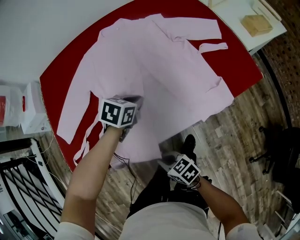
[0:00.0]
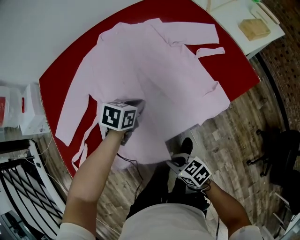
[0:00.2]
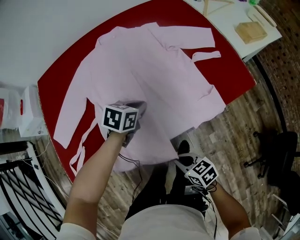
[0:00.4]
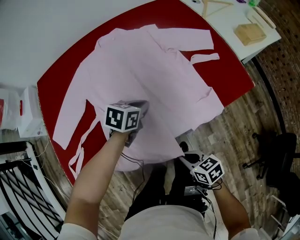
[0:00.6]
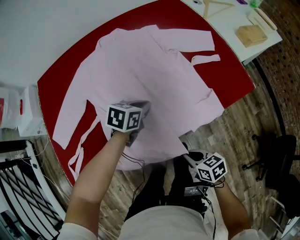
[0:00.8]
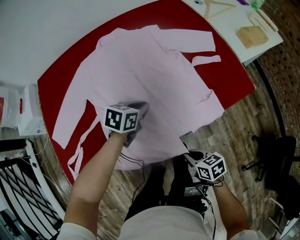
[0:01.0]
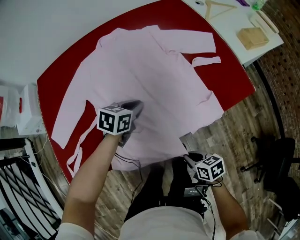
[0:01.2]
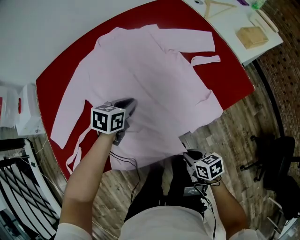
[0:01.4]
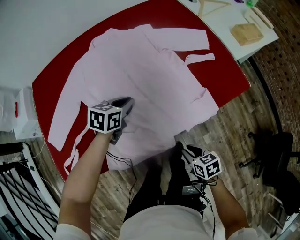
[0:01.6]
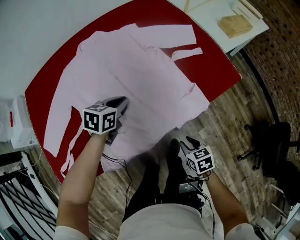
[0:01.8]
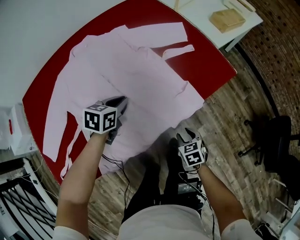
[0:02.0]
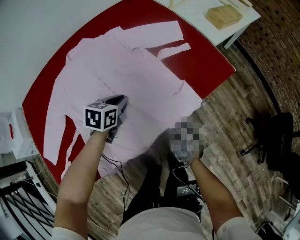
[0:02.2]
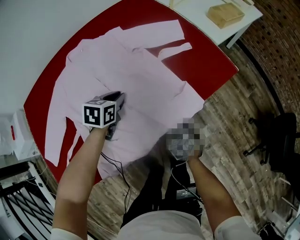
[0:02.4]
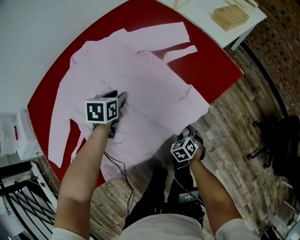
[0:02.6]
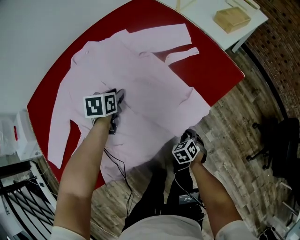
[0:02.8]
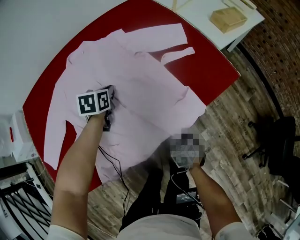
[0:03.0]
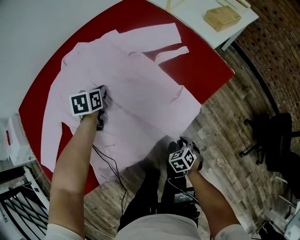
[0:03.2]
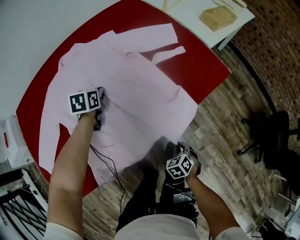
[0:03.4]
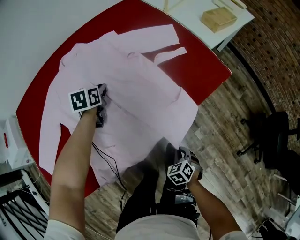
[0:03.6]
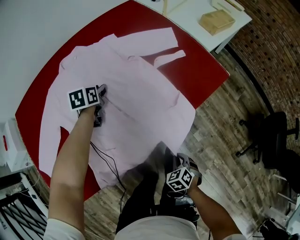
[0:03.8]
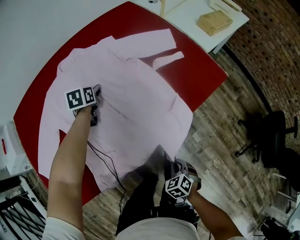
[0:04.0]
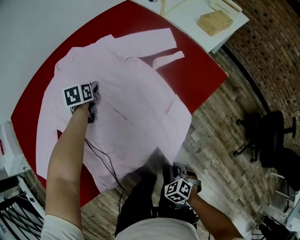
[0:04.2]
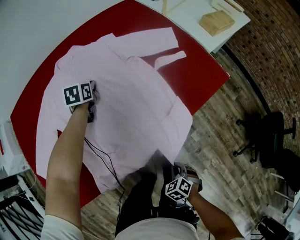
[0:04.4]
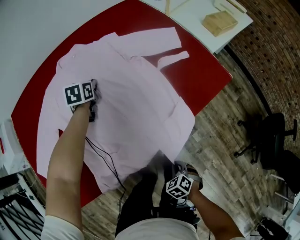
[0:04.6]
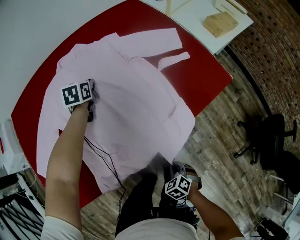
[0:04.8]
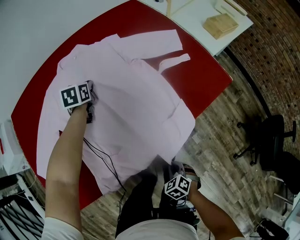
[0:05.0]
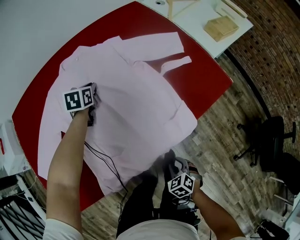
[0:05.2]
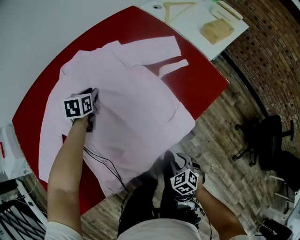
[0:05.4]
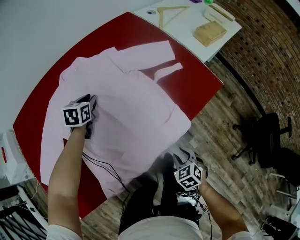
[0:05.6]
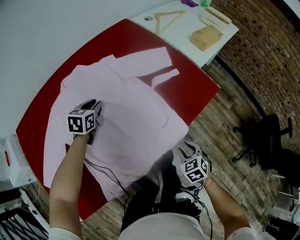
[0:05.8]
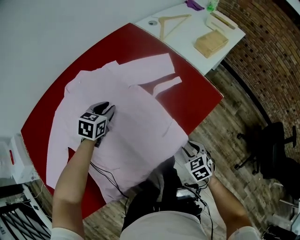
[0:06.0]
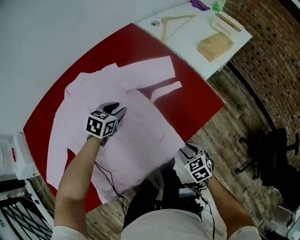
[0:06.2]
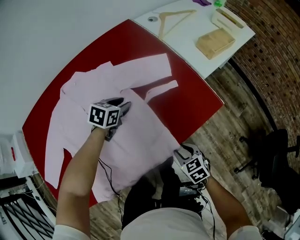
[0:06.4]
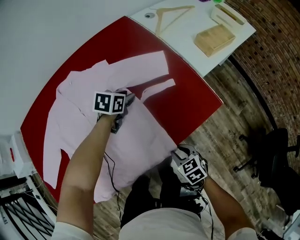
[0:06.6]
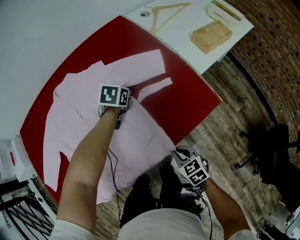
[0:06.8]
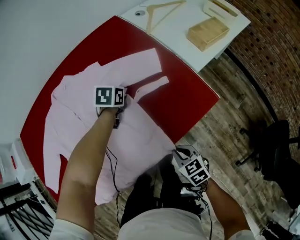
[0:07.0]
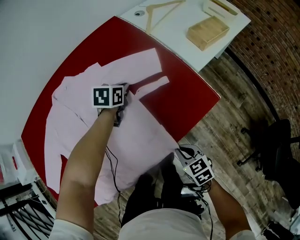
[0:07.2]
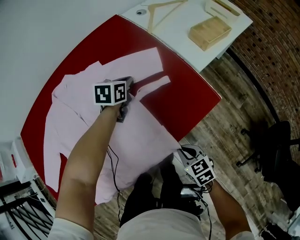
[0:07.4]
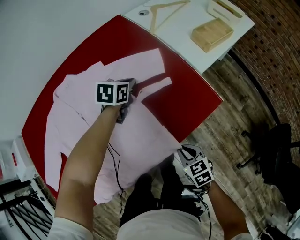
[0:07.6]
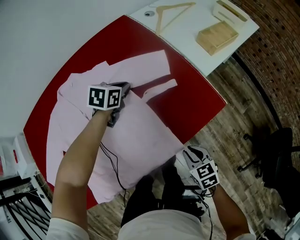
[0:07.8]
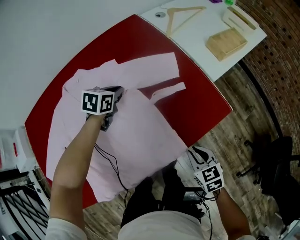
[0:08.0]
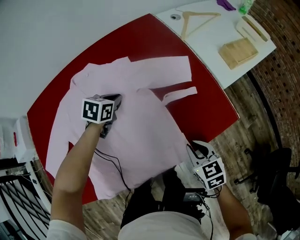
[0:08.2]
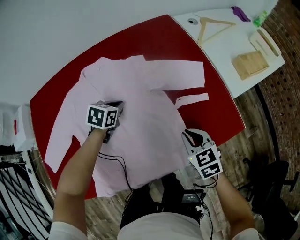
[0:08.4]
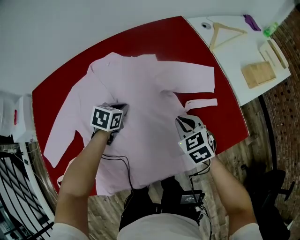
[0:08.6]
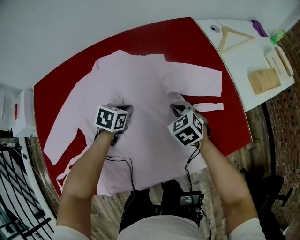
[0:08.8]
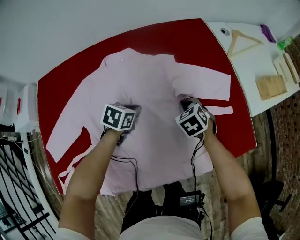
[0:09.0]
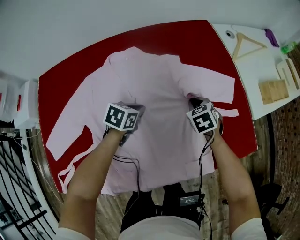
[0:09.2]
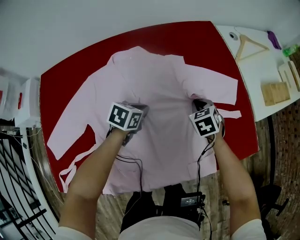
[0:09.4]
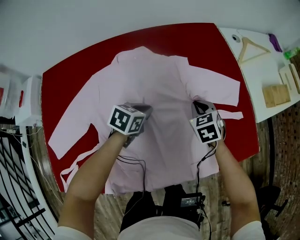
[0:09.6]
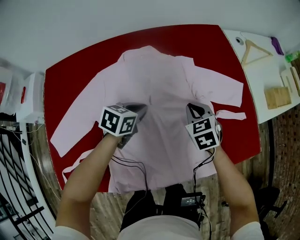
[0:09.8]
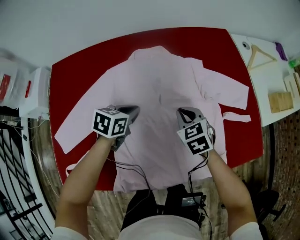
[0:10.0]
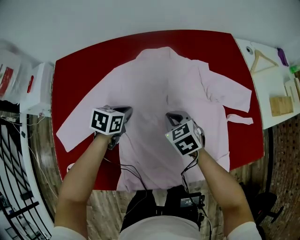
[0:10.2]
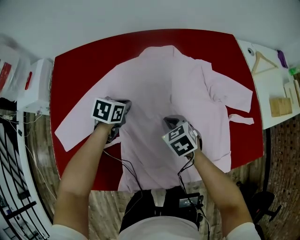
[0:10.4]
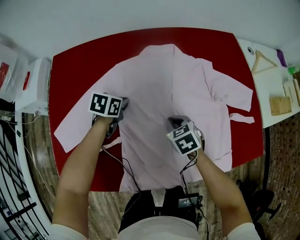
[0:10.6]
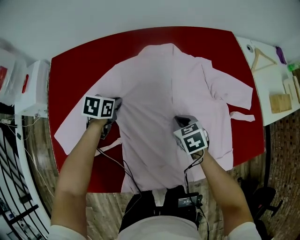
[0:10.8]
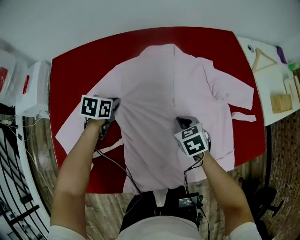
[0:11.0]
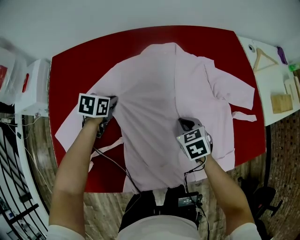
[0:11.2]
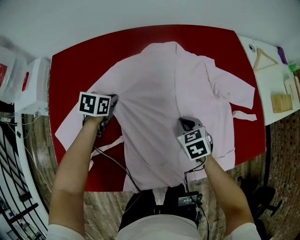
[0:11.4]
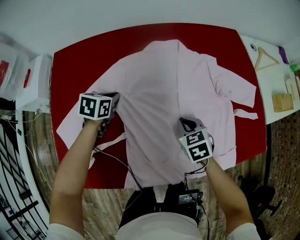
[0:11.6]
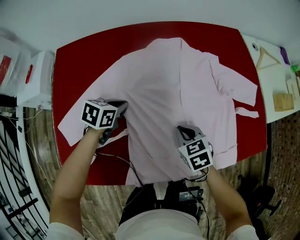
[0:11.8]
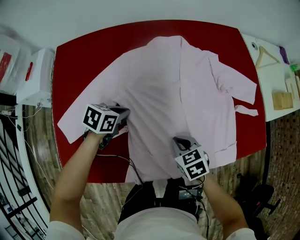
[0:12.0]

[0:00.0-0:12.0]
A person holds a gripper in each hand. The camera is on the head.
0:00.0 to 0:01.6: The right gripper moves to the right, some 20 cm, and swivels roughly 30 degrees.
0:01.6 to 0:03.0: The left gripper travels forward by approximately 10 cm, and opens, then closes once more. Meanwhile the right gripper is displaced downward and forward by about 15 cm, turns by about 40 degrees, and opens, then closes again.
0:03.0 to 0:04.4: The left gripper heads to the left and forward, covering about 10 cm, and opens and closes again. The right gripper shifts roughly 15 cm backward.
0:04.4 to 0:06.0: The right gripper moves forward and upward, roughly 20 cm, rotates roughly 20 degrees, and opens. Meanwhile the left gripper heads to the right and upward, covering some 10 cm, and swivels roughly 30 degrees.
0:06.0 to 0:07.6: The left gripper is displaced to the right and forward by about 20 cm, and closes up; the right gripper closes up.
0:07.6 to 0:09.0: The left gripper is displaced to the left and backward by approximately 25 cm, while the right gripper shifts roughly 35 cm forward and to the left, and changes its angle by roughly 40 degrees.
0:09.0 to 0:10.4: The left gripper moves to the left, about 20 cm; the right gripper heads to the left and backward, covering roughly 25 cm.
0:10.4 to 0:12.0: Both grippers travel together backward, approximately 10 cm.

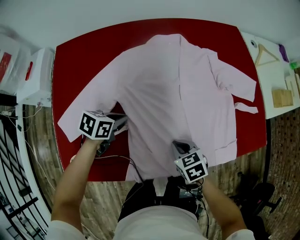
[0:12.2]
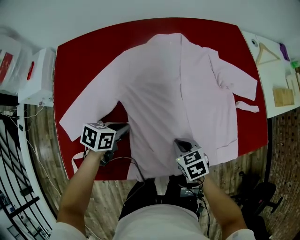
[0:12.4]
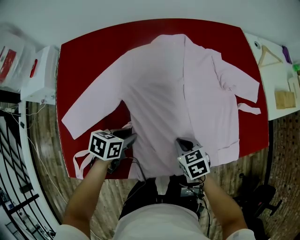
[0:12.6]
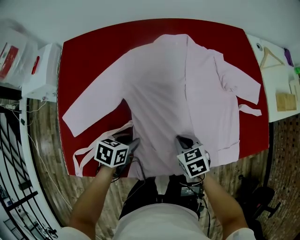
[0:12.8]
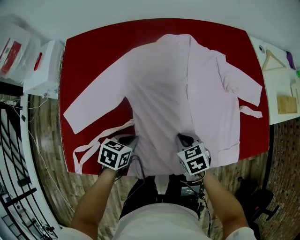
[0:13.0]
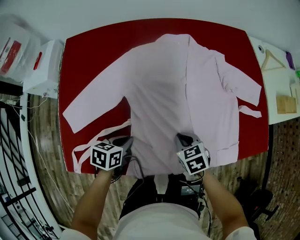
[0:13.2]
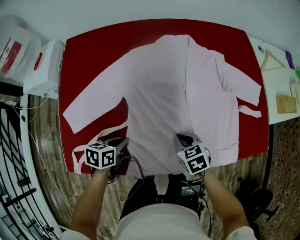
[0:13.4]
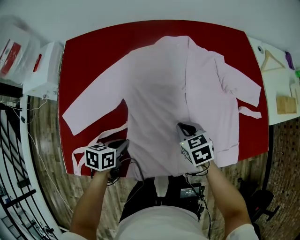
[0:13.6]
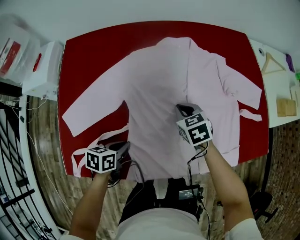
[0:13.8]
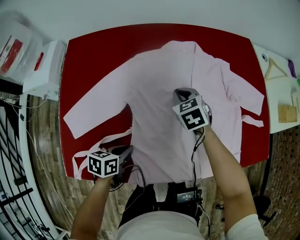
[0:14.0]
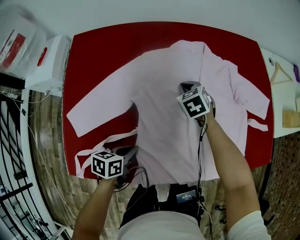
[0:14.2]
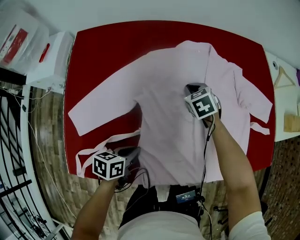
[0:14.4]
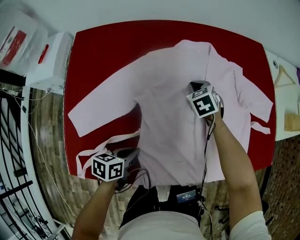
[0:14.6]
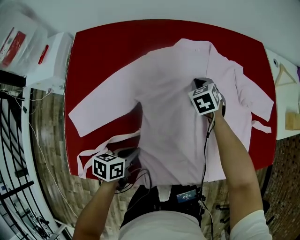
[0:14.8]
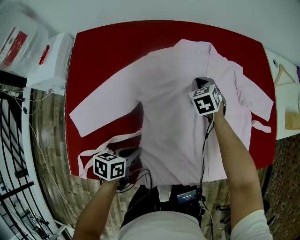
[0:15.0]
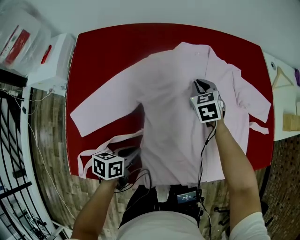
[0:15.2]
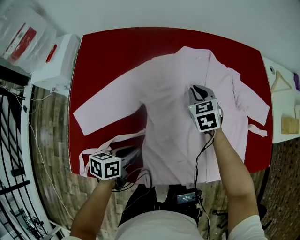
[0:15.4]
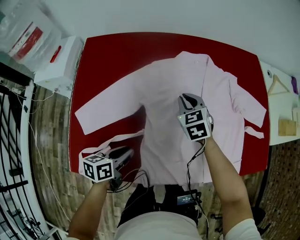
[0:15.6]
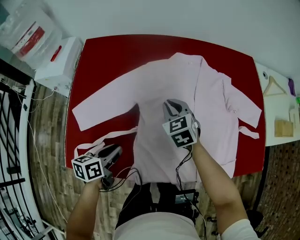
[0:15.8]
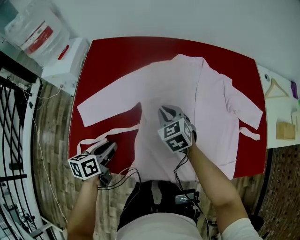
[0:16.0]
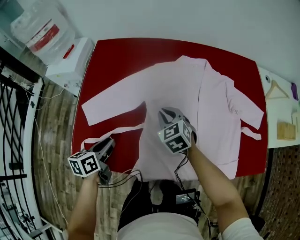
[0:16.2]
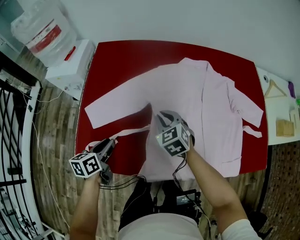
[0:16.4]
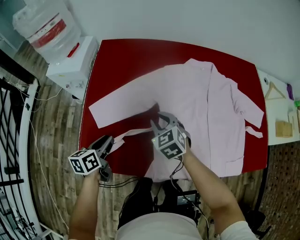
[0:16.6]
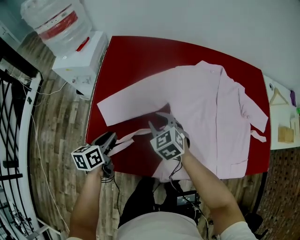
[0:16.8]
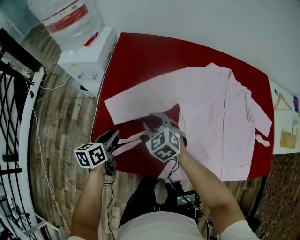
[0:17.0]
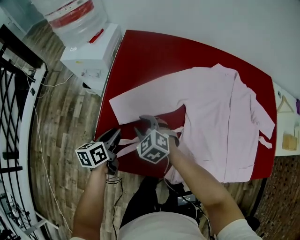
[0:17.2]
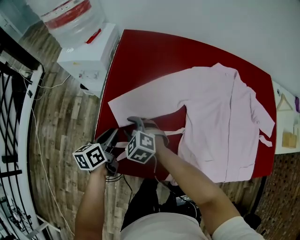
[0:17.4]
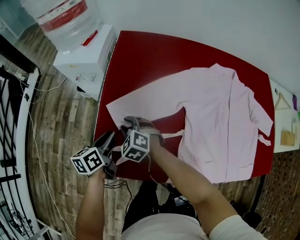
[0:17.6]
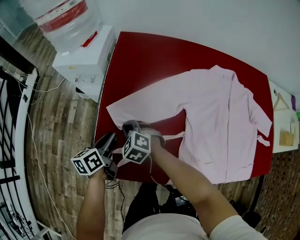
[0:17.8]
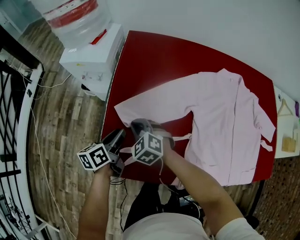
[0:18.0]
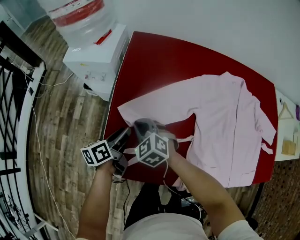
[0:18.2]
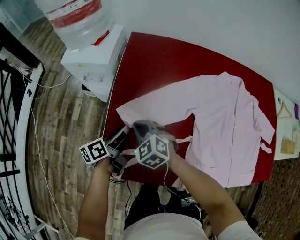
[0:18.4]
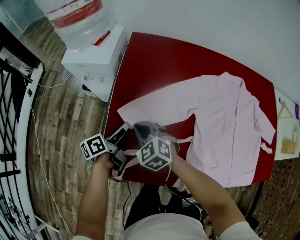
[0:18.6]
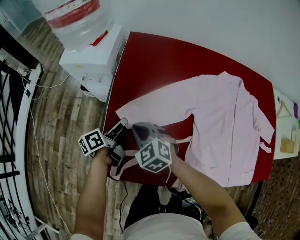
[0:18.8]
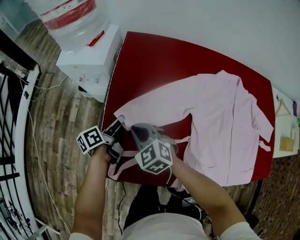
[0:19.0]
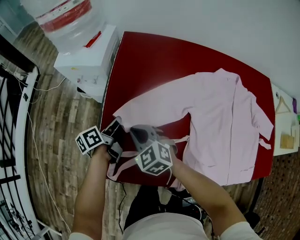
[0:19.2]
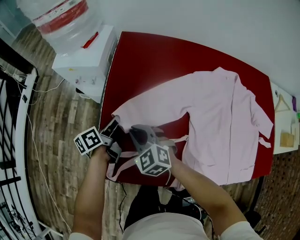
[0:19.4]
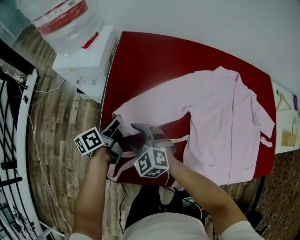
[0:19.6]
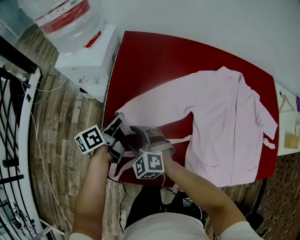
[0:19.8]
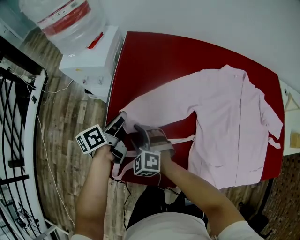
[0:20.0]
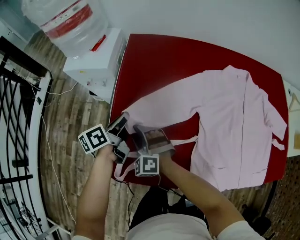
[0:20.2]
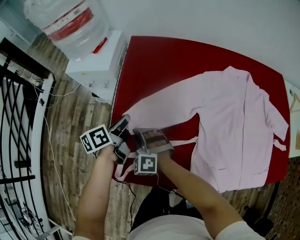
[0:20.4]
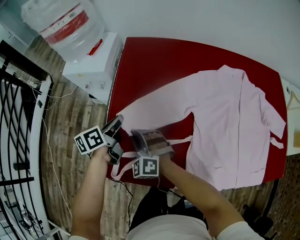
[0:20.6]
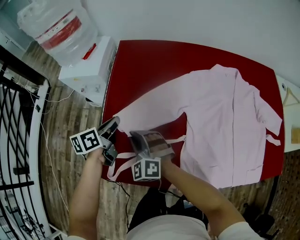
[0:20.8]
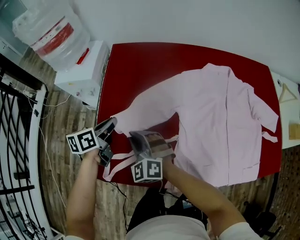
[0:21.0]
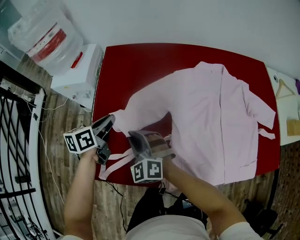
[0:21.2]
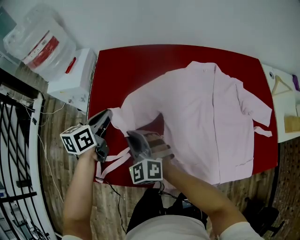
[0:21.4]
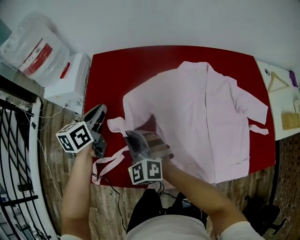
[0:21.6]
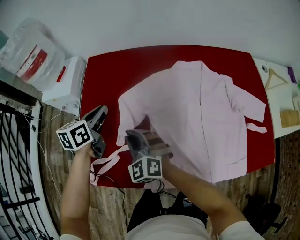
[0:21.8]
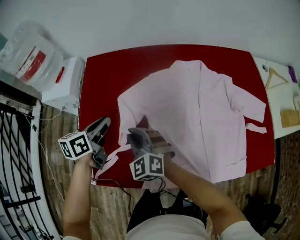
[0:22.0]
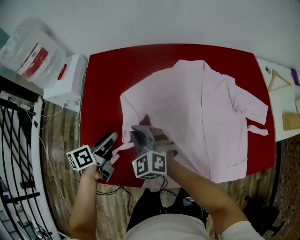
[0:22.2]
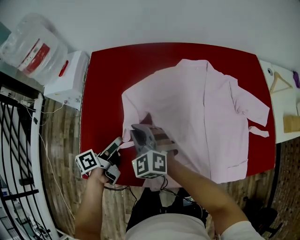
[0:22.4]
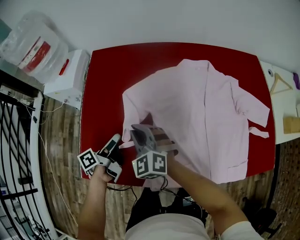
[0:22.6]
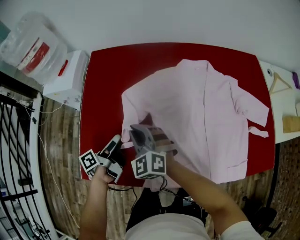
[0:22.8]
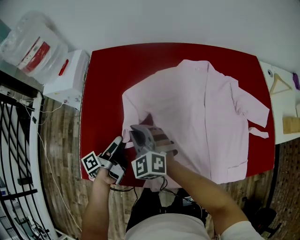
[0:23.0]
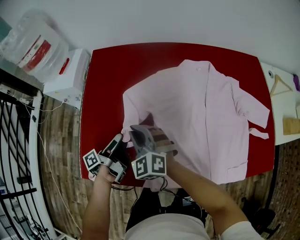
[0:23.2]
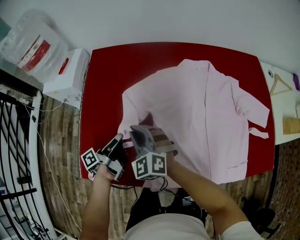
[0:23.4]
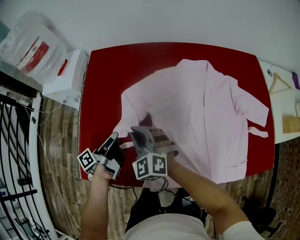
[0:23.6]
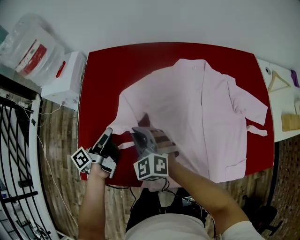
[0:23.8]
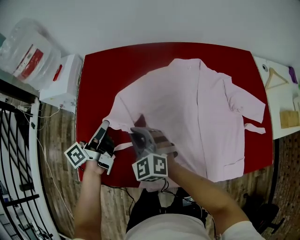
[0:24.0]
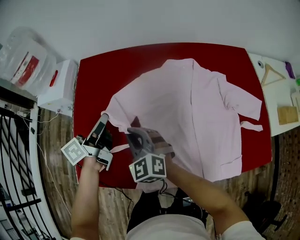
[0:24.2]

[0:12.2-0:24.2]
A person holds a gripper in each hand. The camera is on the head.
0:12.2 to 0:13.8: The right gripper heads forward, covering roughly 15 cm, while the left gripper travels backward by approximately 10 cm, changes its angle by about 20 degrees, and opens and closes again.
0:13.8 to 0:15.2: The right gripper heads forward, covering roughly 10 cm.
0:15.2 to 0:16.6: The right gripper changes place by roughly 30 cm, and rotates about 20 degrees, while the left gripper ends up about 20 cm from where it was, and swivels roughly 30 degrees.
0:16.6 to 0:18.2: The right gripper moves to the left, roughly 25 cm. The left gripper travels to the left and forward by approximately 10 cm, and swivels roughly 20 degrees.
0:18.2 to 0:19.8: The left gripper goes some 5 cm forward, and closes. Meanwhile the right gripper opens its fingers.
0:19.8 to 0:21.2: The left gripper shifts about 10 cm upward and to the right, and turns by some 30 degrees. Meanwhile the right gripper moves to the right and upward, roughly 10 cm, and closes up.
0:21.2 to 0:22.6: The left gripper is displaced to the right and backward by some 10 cm, rotates around the line of its fingers by some 40 degrees, counterclockwise from behind, and opens its fingers. Meanwhile the right gripper heads to the right, covering roughly 10 cm.
0:22.6 to 0:24.2: The left gripper moves upward and forward, approximately 15 cm, turns by roughly 30 degrees, and closes.
